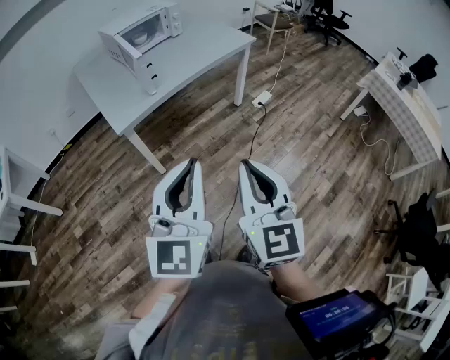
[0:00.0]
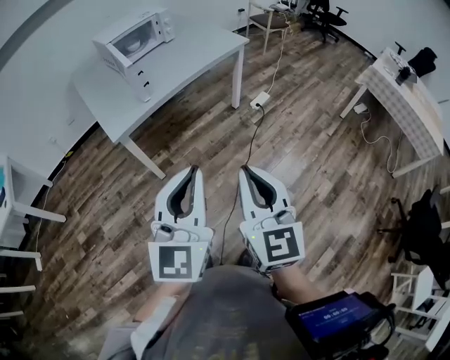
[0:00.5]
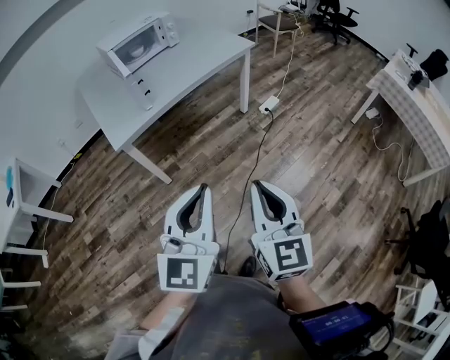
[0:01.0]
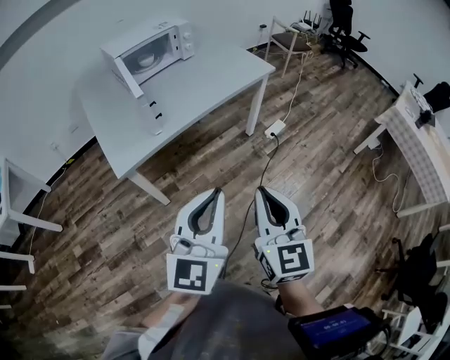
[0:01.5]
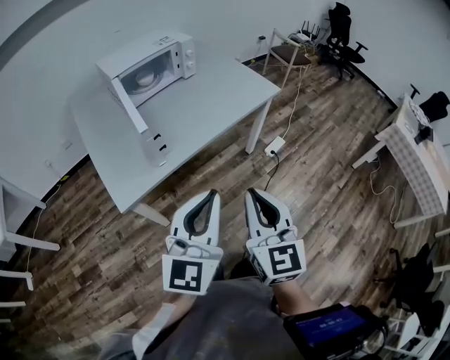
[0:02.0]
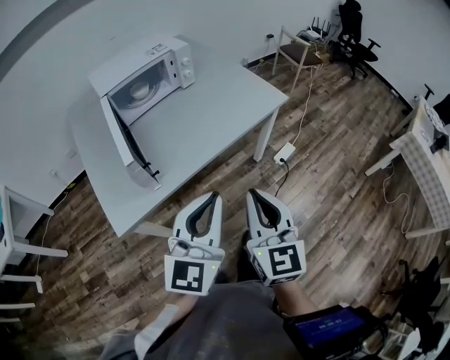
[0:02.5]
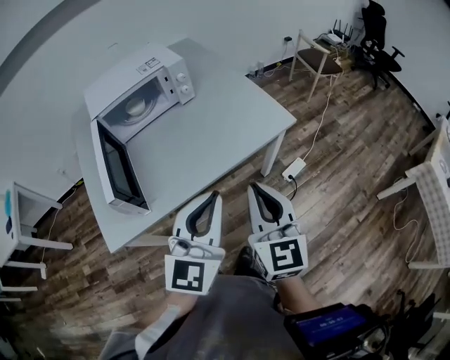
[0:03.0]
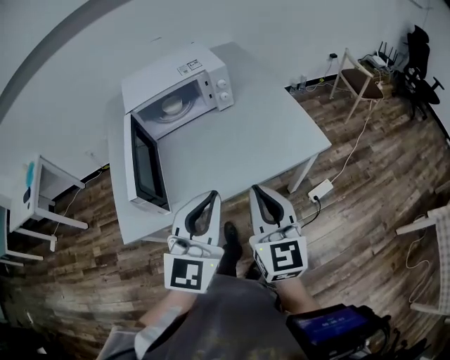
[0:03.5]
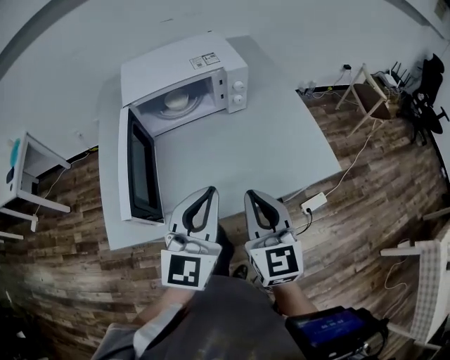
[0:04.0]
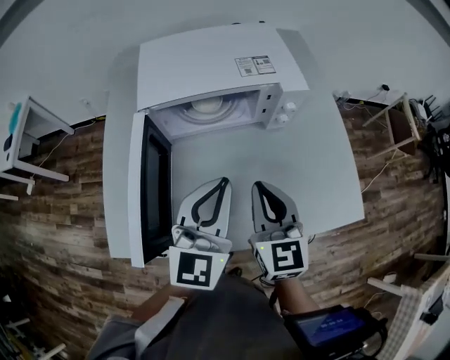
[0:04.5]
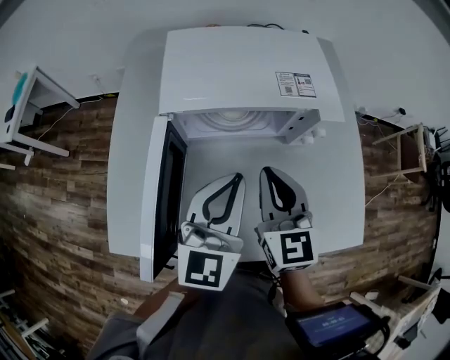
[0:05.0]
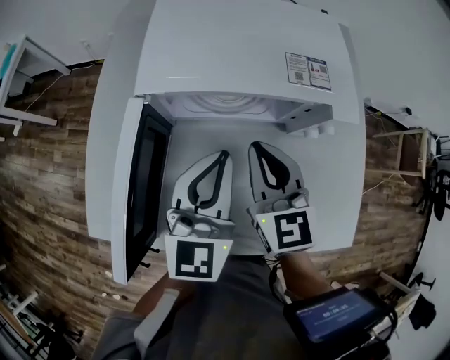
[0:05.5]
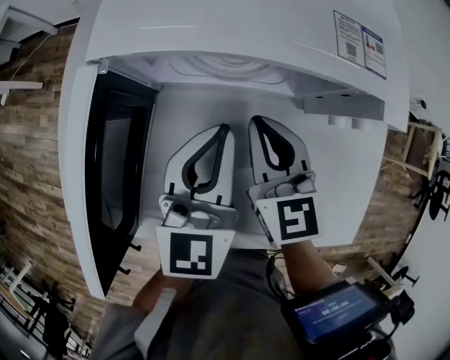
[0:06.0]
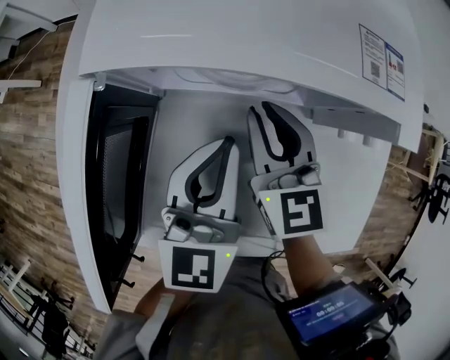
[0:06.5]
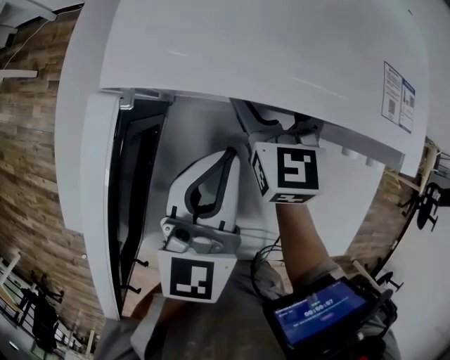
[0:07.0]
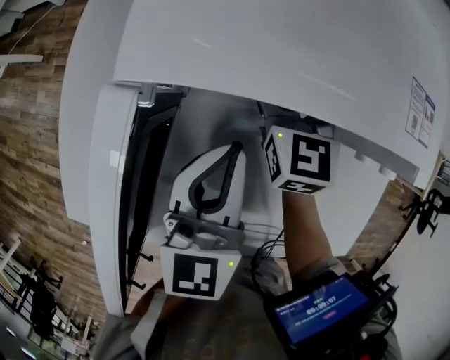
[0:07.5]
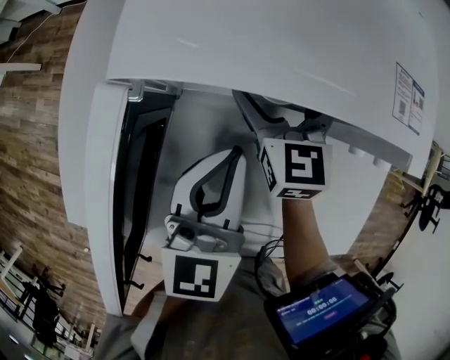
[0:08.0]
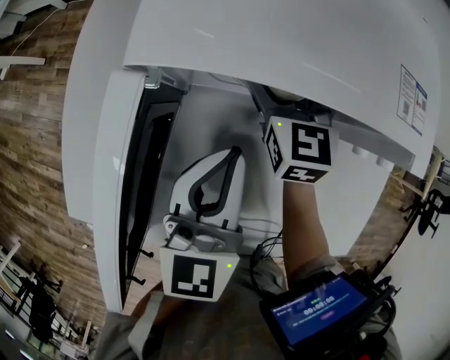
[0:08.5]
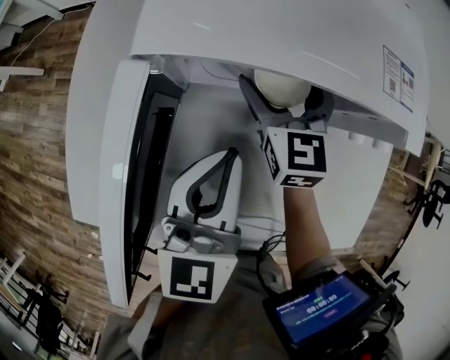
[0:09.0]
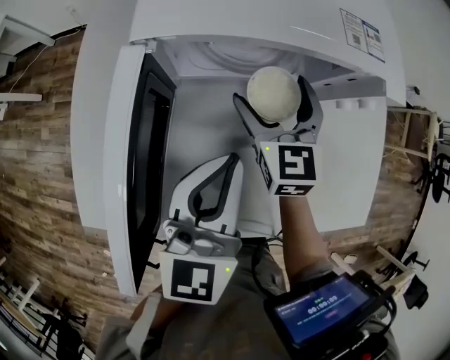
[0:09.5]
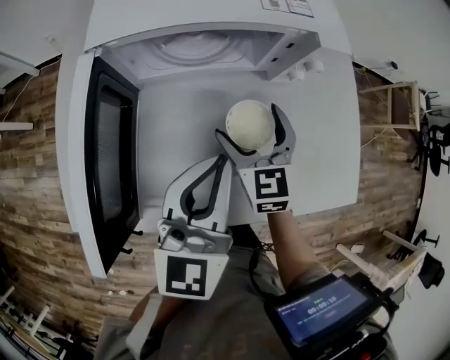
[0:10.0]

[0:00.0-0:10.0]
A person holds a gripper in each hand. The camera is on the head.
0:00.0 to 0:02.0: Both grippers move forward, roughly 30 cm.
0:02.0 to 0:04.0: The two grippers go some 35 cm forward. The right gripper changes its angle by some 30 degrees, while the left gripper swivels approximately 30 degrees.
0:04.0 to 0:06.0: The right gripper ends up approximately 35 cm from where it was, and swivels about 30 degrees, while the left gripper shifts by about 30 cm, and changes its angle by approximately 30 degrees.
0:06.0 to 0:08.0: The right gripper is displaced forward by some 10 cm, and opens its fingers.
0:08.0 to 0:10.0: The right gripper shifts approximately 20 cm backward and to the right. The left gripper shifts about 15 cm backward, upward and to the right.

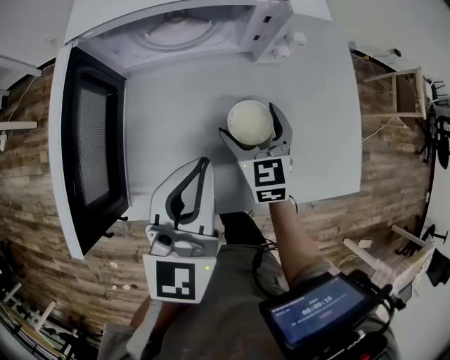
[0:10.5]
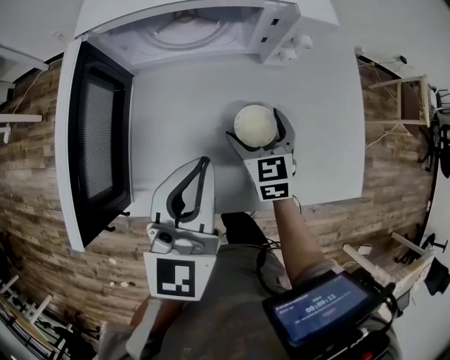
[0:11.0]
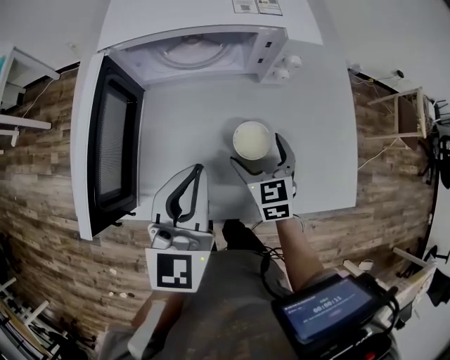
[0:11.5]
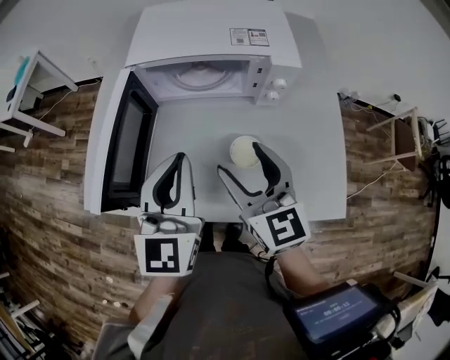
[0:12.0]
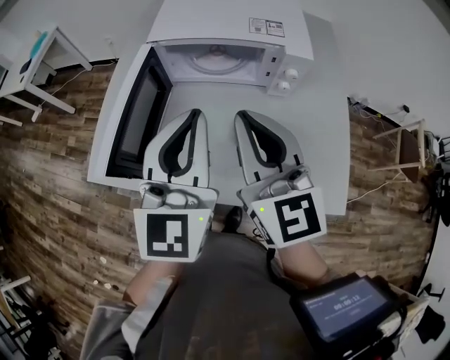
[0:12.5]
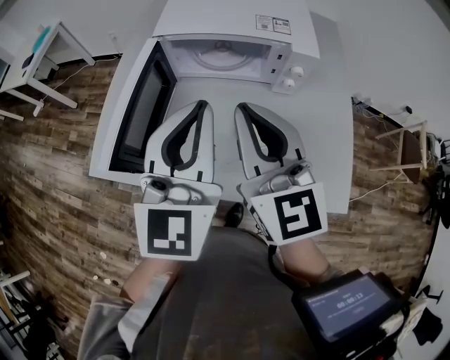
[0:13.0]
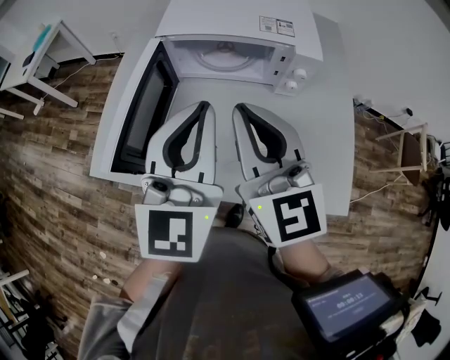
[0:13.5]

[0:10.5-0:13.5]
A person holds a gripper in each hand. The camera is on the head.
0:10.5 to 0:12.0: The right gripper travels upward by approximately 20 cm, and swivels roughly 20 degrees. The left gripper shifts approximately 5 cm upward.
0:12.0 to 0:13.5: Both grippers move upward, roughly 10 cm. The right gripper closes up.

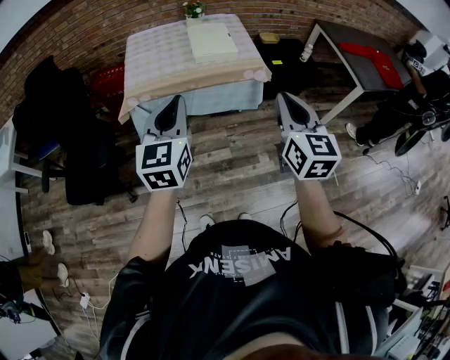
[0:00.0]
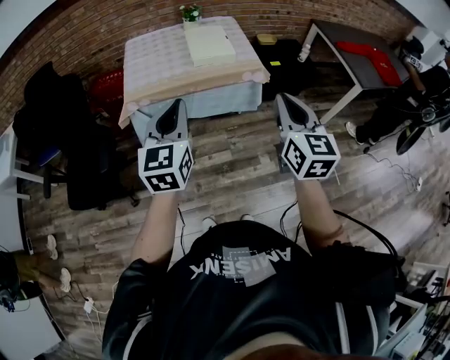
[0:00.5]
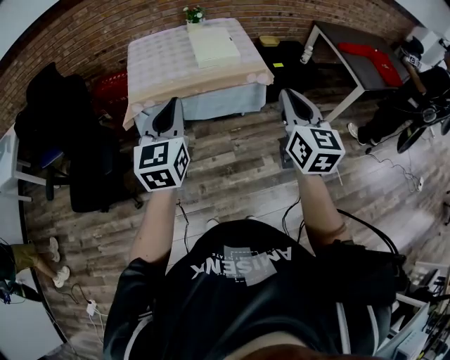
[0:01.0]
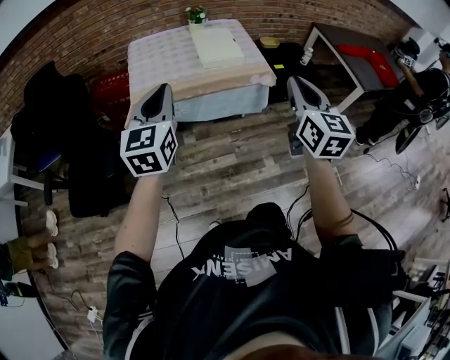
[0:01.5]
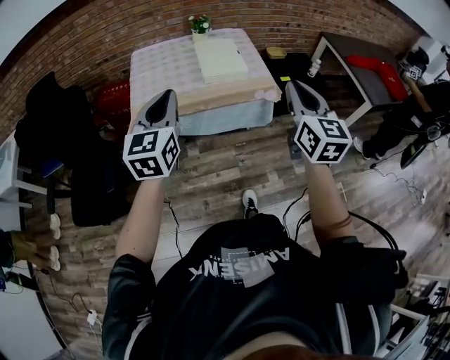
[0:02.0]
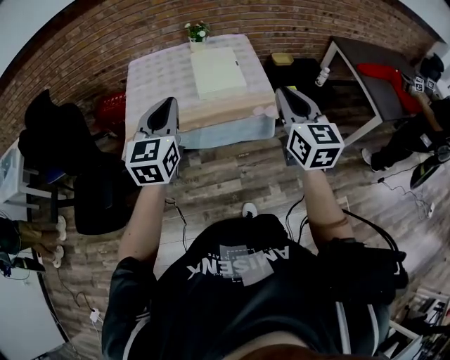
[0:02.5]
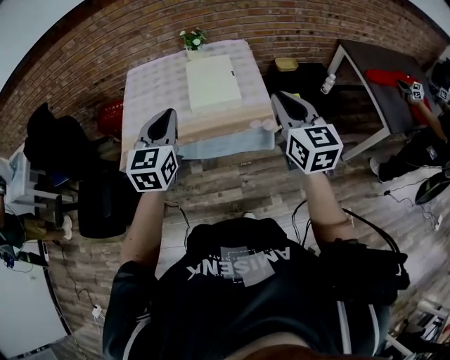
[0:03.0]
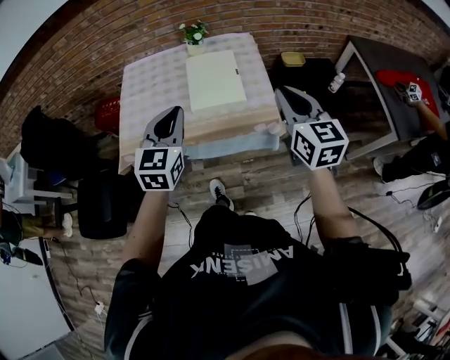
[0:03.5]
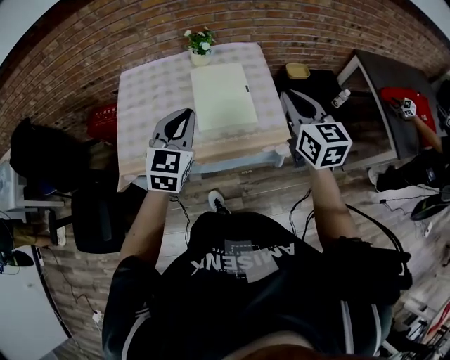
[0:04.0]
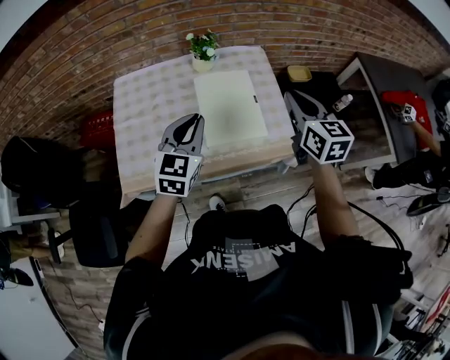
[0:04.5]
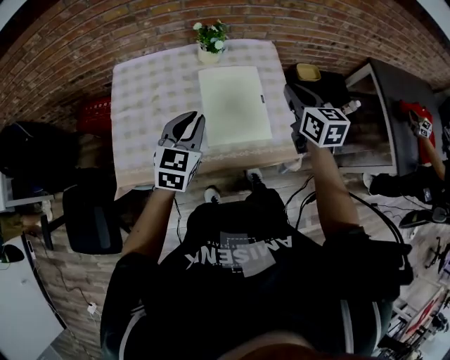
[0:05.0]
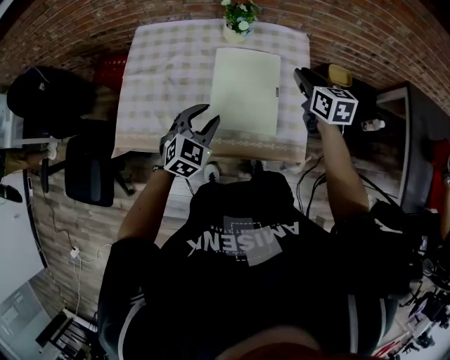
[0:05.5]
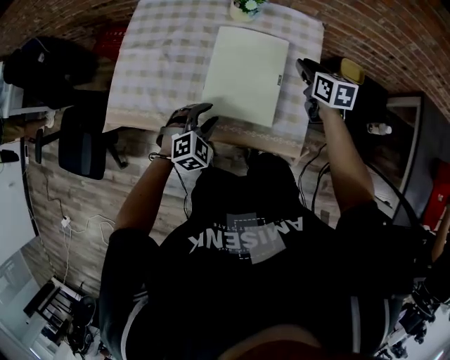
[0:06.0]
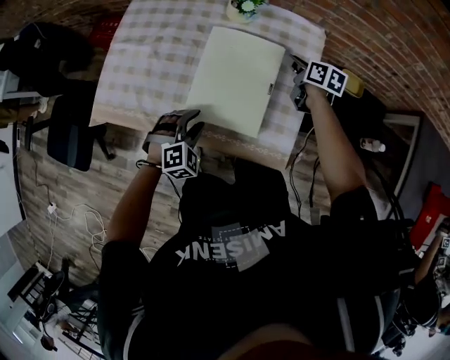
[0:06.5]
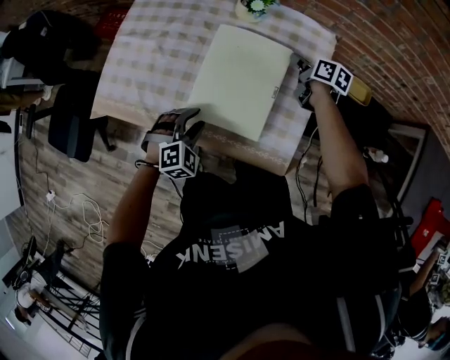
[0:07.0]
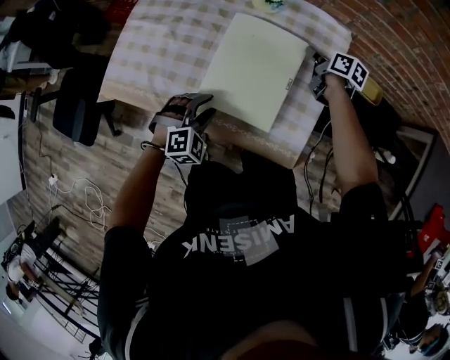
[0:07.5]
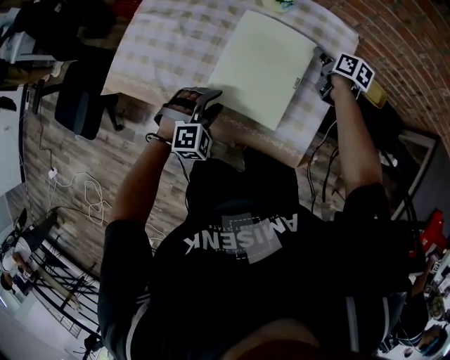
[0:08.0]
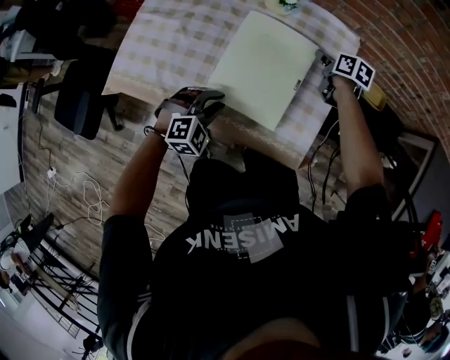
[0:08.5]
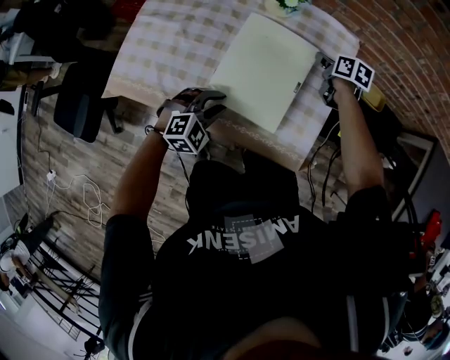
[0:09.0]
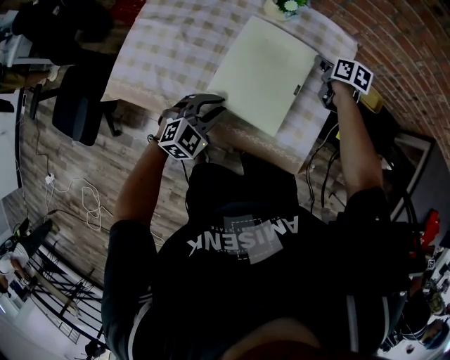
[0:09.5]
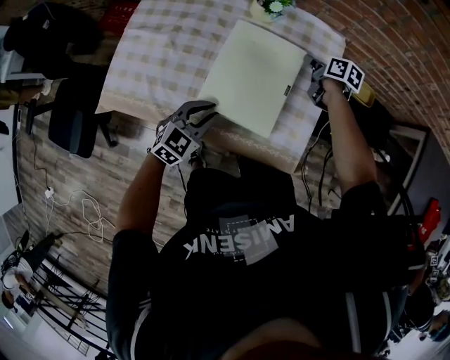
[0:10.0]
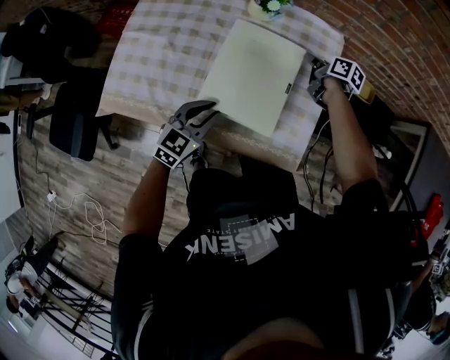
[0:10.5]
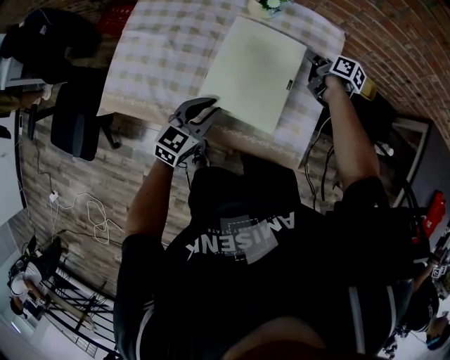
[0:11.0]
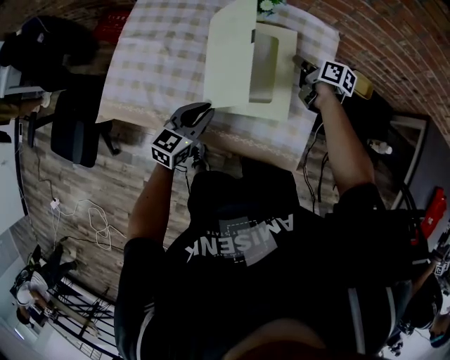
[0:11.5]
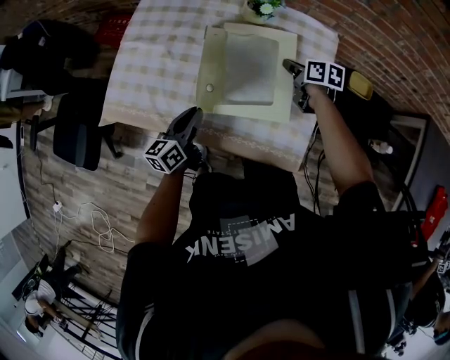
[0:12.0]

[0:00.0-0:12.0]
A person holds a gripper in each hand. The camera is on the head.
0:00.0 to 0:02.0: The left gripper moves forward and to the left, roughly 15 cm, while the right gripper heads forward, covering roughly 15 cm.
0:02.0 to 0:04.0: Both grippers travel together forward, roughly 40 cm.
0:04.0 to 0:06.0: The left gripper shifts roughly 25 cm downward, tilts its fingers roughly 30 degrees downward, and opens up, while the right gripper goes roughly 40 cm forward and downward, and swivels roughly 30 degrees.
0:06.0 to 0:08.0: The right gripper goes about 15 cm downward and forward, and turns by some 20 degrees.
0:08.0 to 0:10.0: The left gripper turns by about 40 degrees, and closes up.
0:10.0 to 0:12.0: Both grippers travel together to the left, approximately 5 cm. The left gripper twists roughly 50 degrees counterclockwise, seen from behind.

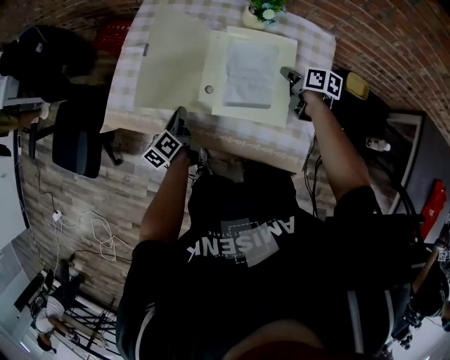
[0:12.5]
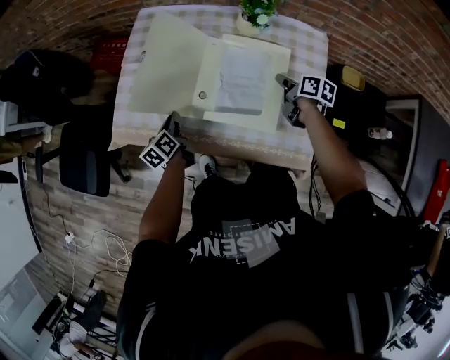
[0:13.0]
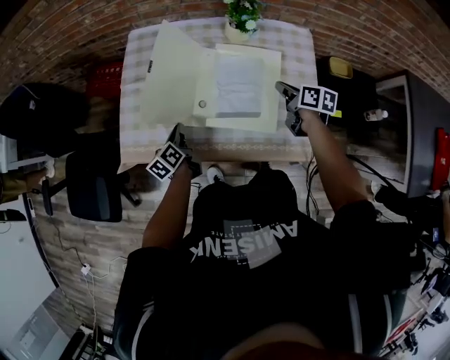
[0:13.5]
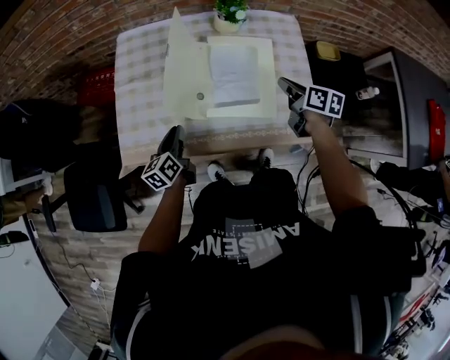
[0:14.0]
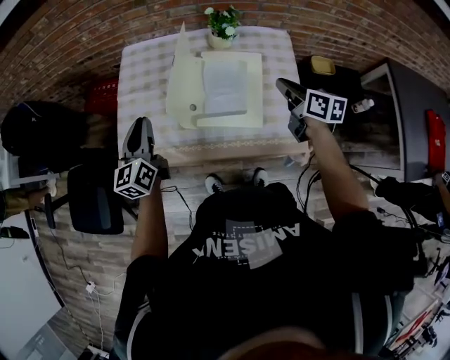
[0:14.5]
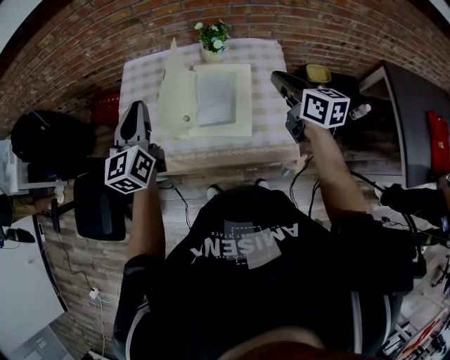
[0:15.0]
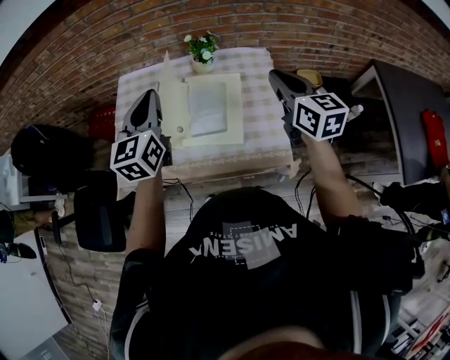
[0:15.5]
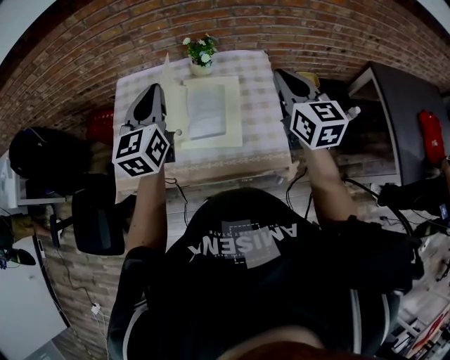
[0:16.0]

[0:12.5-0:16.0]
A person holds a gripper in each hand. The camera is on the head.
0:12.5 to 0:14.5: The left gripper goes roughly 20 cm upward, and turns by about 40 degrees. The right gripper travels upward and backward by about 25 cm, and rotates some 30 degrees.
0:14.5 to 0:16.0: The right gripper is displaced upward by roughly 20 cm, and changes its angle by approximately 40 degrees. The left gripper goes about 25 cm to the right and upward.
